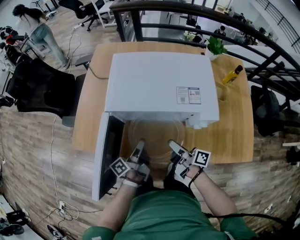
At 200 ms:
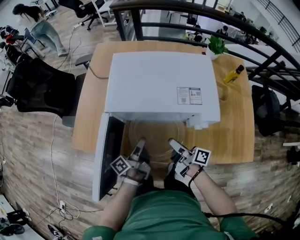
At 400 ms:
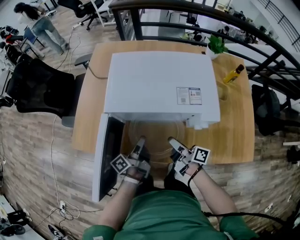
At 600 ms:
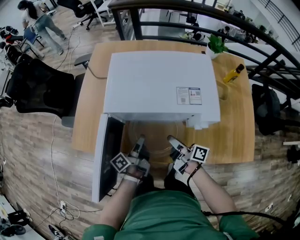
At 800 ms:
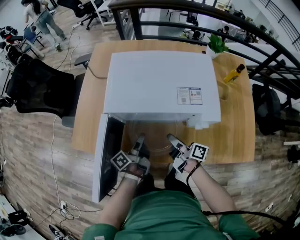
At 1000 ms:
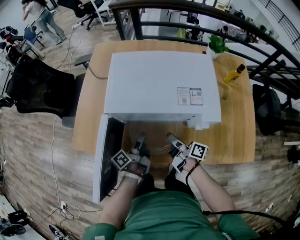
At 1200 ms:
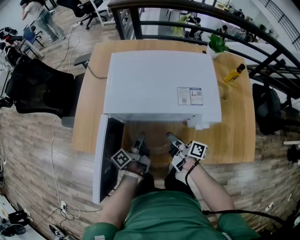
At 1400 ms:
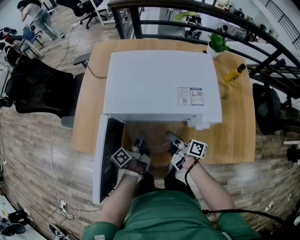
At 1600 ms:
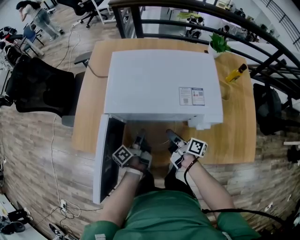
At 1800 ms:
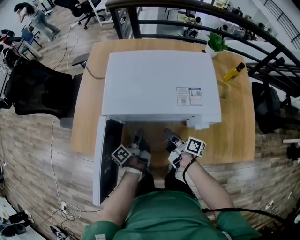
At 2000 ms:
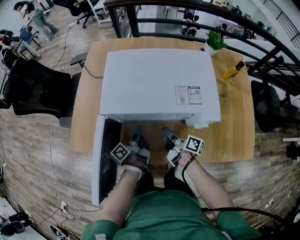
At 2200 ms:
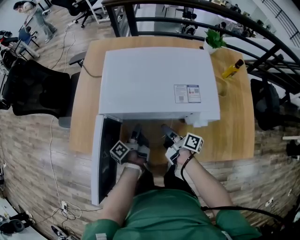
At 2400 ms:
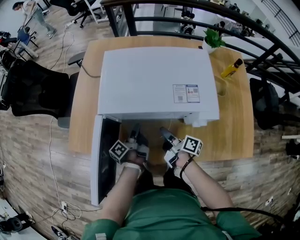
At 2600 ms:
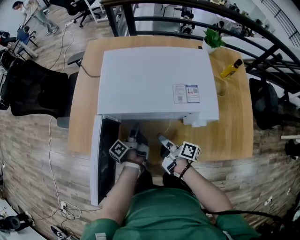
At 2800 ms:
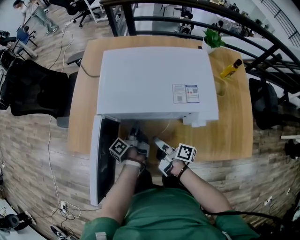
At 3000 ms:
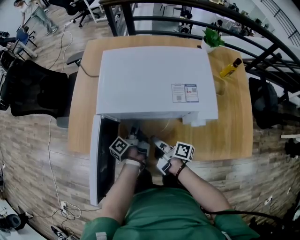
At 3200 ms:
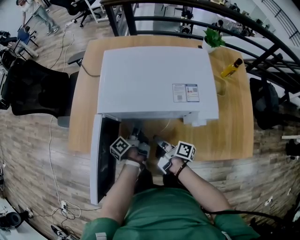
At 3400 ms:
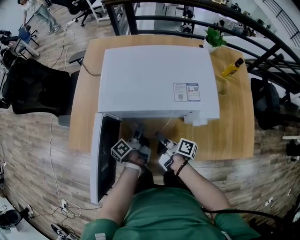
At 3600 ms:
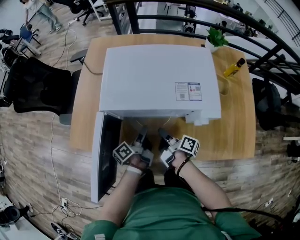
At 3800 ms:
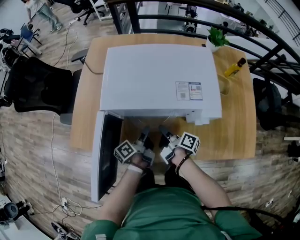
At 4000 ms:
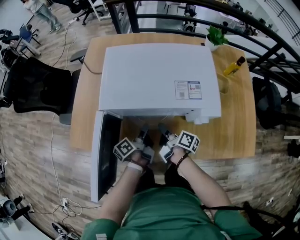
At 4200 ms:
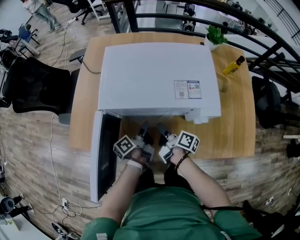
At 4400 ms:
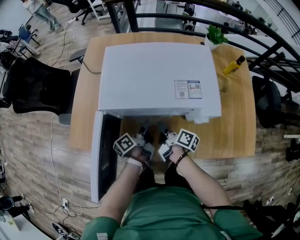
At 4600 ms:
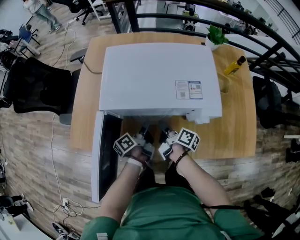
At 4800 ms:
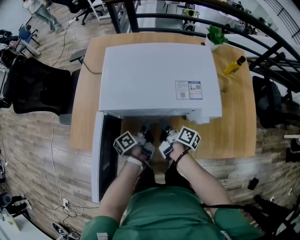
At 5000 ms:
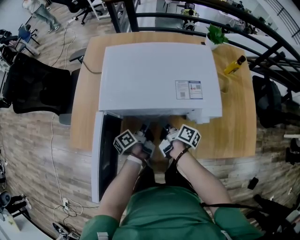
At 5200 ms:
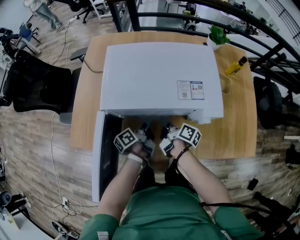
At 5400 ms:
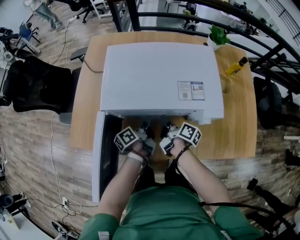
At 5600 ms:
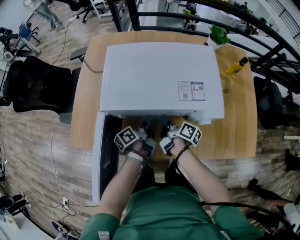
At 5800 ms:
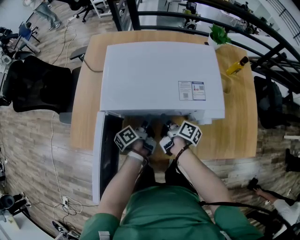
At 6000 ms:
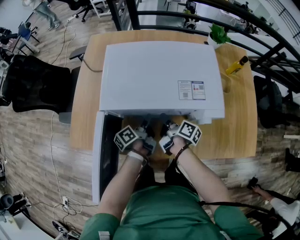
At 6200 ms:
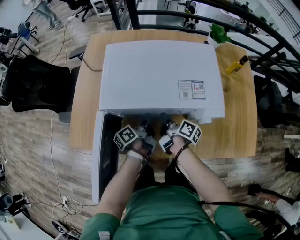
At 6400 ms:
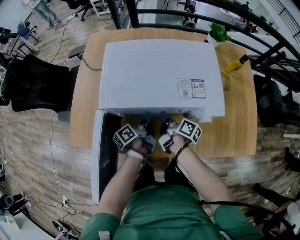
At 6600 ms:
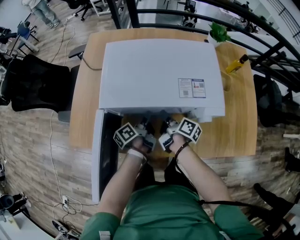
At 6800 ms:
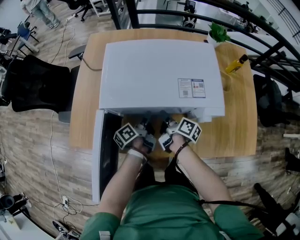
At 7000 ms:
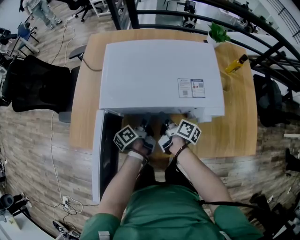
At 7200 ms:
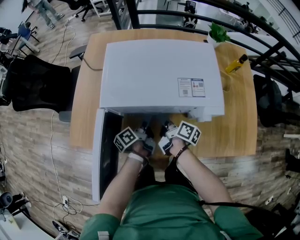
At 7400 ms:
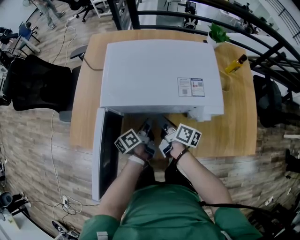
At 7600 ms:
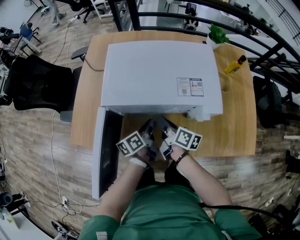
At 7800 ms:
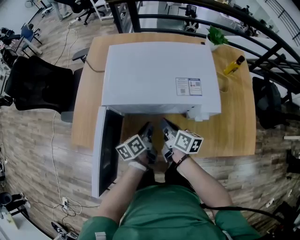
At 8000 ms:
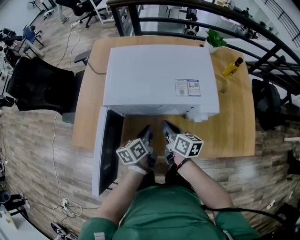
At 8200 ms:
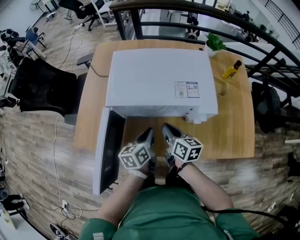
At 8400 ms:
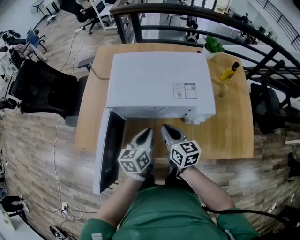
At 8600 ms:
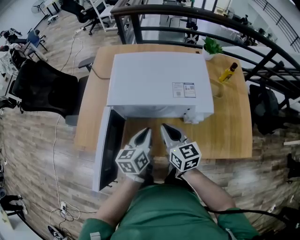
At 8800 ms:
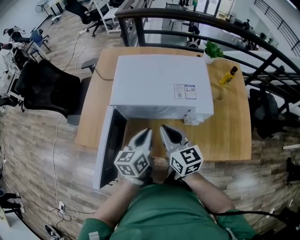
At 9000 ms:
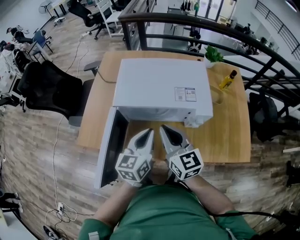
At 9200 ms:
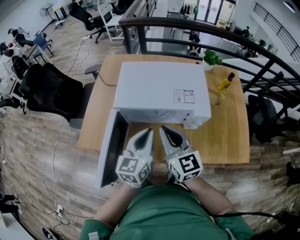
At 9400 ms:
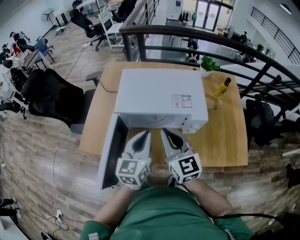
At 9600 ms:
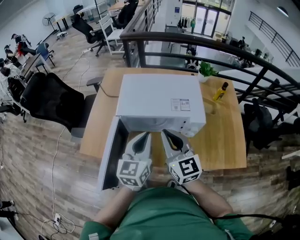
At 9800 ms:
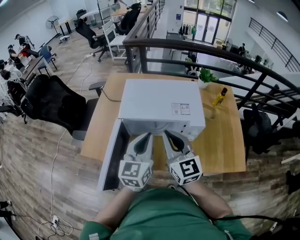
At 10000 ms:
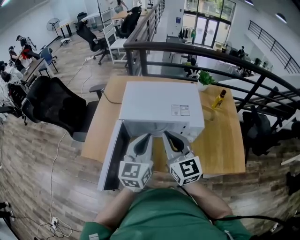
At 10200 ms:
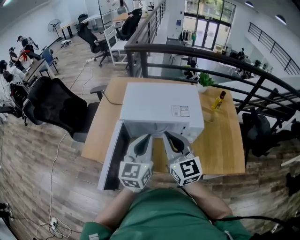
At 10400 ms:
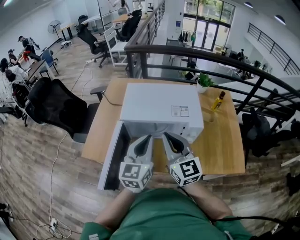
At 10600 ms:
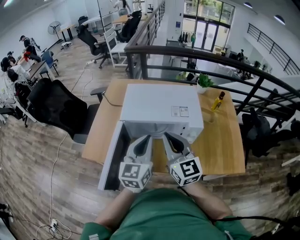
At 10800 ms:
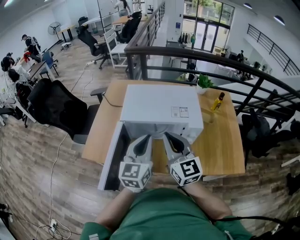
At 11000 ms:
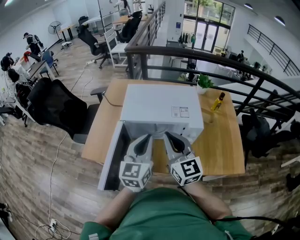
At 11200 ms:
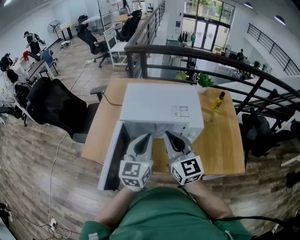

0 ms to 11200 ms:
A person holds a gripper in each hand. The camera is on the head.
0 ms to 1600 ms: The right gripper shifts approximately 5 cm downward.
1600 ms to 3200 ms: The right gripper ends up approximately 5 cm from where it was, and opens, then closes once more.
3200 ms to 4800 ms: The right gripper changes place by about 5 cm.
6400 ms to 8000 ms: The right gripper heads upward, covering some 5 cm, and swivels about 30 degrees.
8000 ms to 9600 ms: The right gripper moves upward, about 25 cm, and twists about 50 degrees counterclockwise, seen from behind.

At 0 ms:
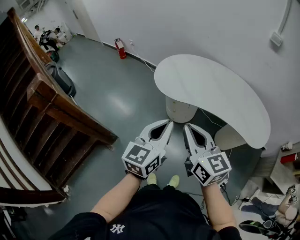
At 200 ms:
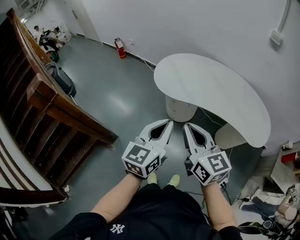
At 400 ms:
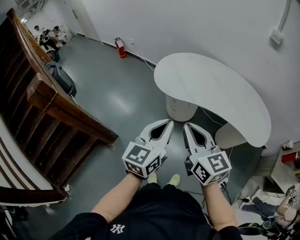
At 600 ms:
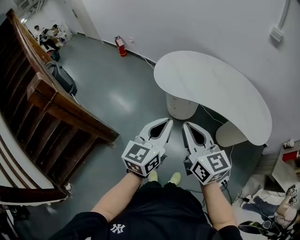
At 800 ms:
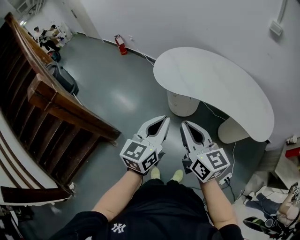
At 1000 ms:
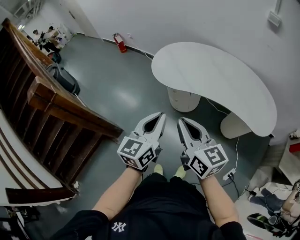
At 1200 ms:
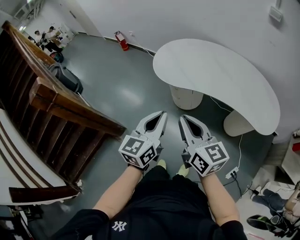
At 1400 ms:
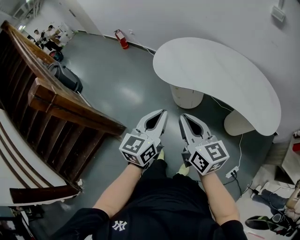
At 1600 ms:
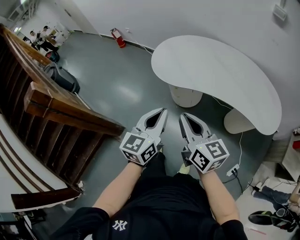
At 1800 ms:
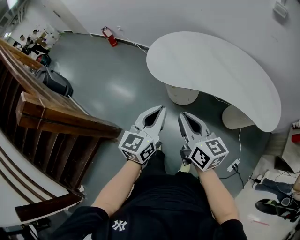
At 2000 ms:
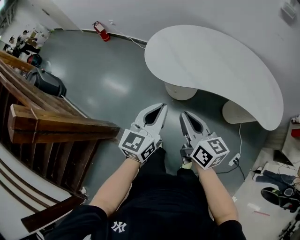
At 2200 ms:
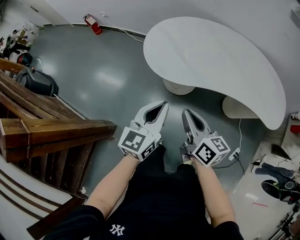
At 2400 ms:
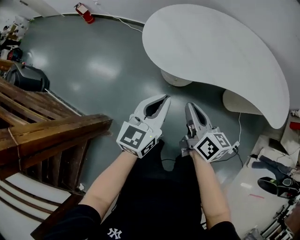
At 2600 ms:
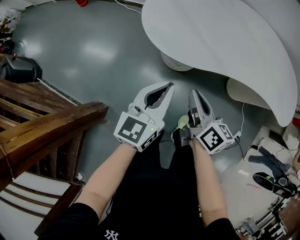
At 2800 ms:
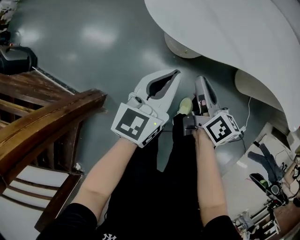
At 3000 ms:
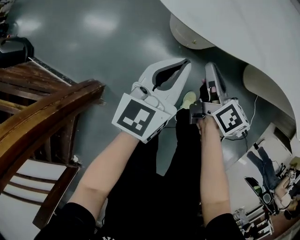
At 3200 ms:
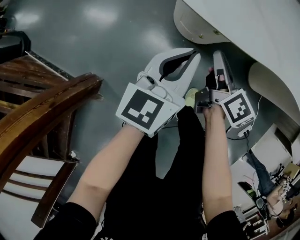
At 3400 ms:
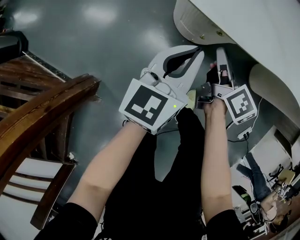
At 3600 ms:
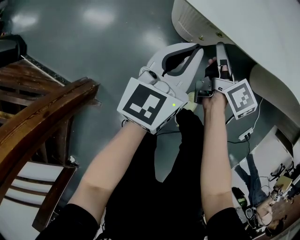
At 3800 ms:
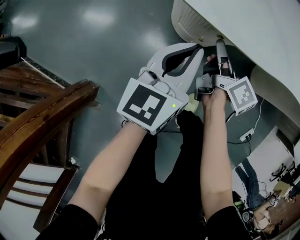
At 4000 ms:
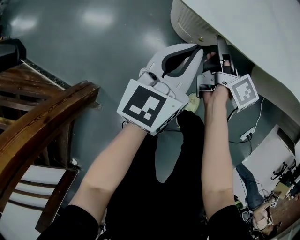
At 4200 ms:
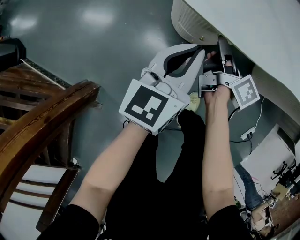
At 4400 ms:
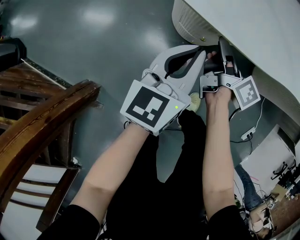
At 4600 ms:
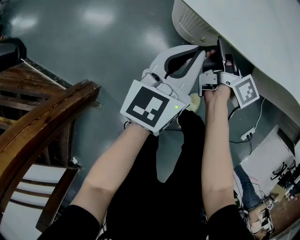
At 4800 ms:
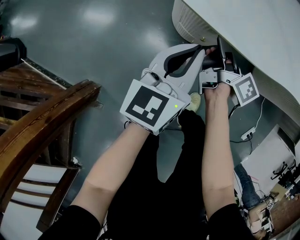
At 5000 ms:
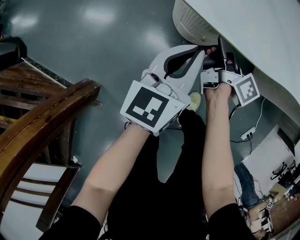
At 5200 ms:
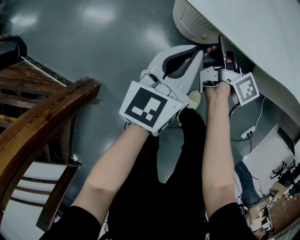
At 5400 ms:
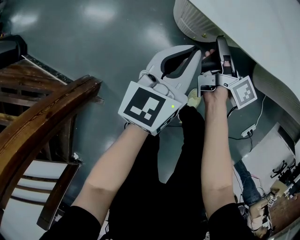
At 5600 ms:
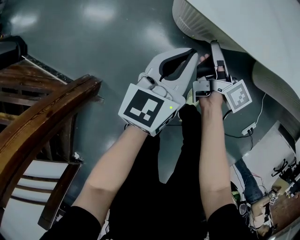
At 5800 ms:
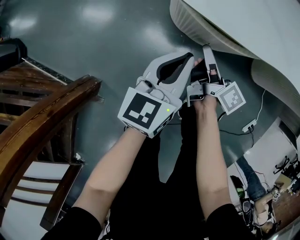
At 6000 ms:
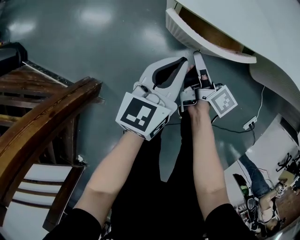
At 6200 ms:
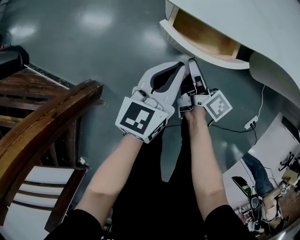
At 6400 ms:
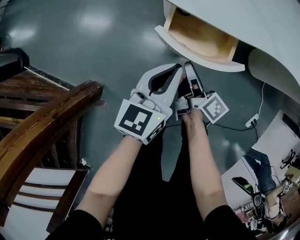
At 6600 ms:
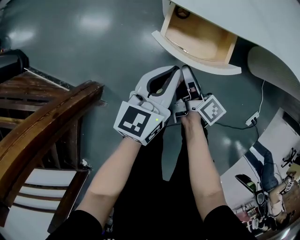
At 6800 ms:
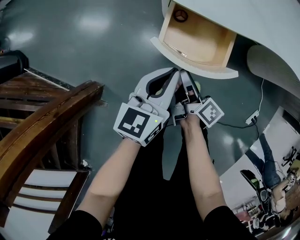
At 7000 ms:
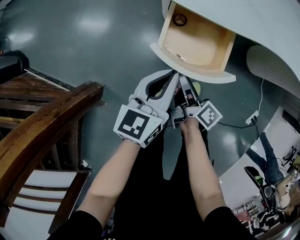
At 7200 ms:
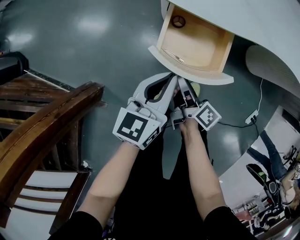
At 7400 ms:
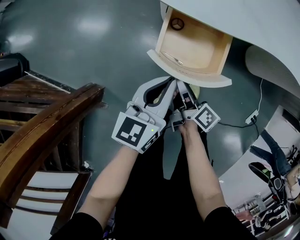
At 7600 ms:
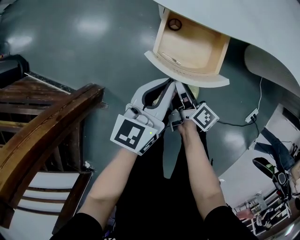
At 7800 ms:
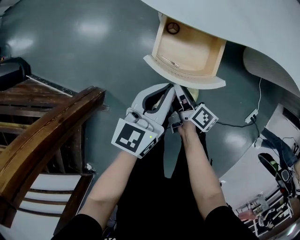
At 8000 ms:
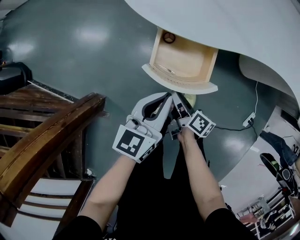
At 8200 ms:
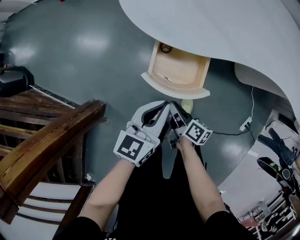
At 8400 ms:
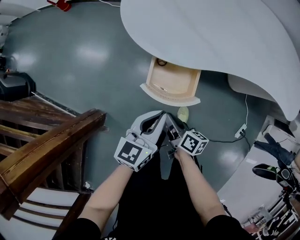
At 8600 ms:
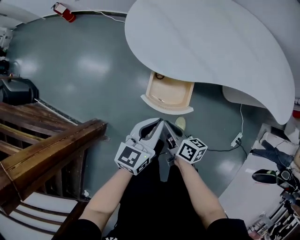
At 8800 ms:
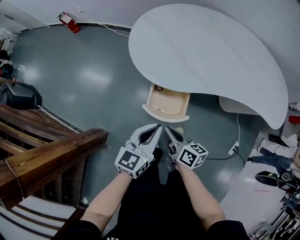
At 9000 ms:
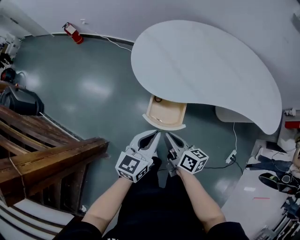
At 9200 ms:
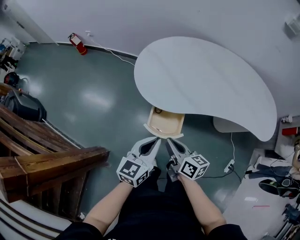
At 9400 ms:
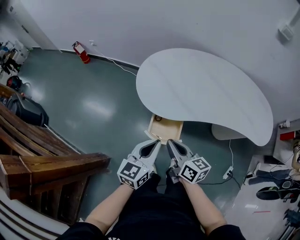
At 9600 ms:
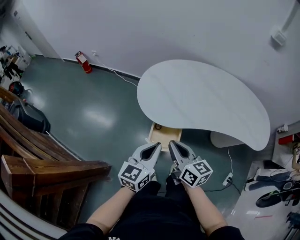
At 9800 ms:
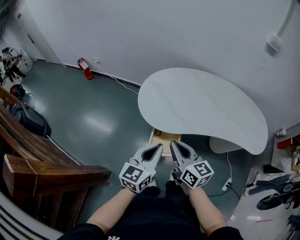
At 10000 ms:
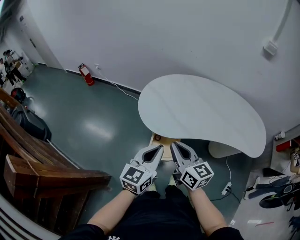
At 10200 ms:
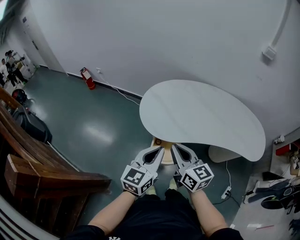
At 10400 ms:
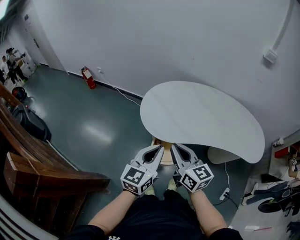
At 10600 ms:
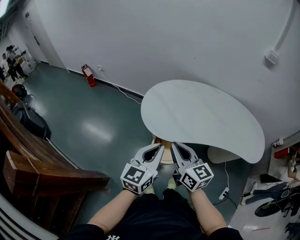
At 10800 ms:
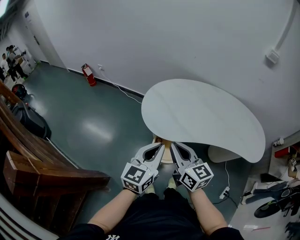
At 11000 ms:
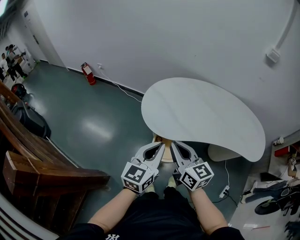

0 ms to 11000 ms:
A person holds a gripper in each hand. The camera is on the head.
0 ms to 1600 ms: Both grippers travel together downward, approximately 5 cm.
1600 ms to 3200 ms: The two grippers go about 50 cm downward and forward. The right gripper rotates roughly 40 degrees.
3200 ms to 4800 ms: The right gripper travels forward and downward by some 10 cm, and rotates roughly 30 degrees. Meanwhile the left gripper goes about 5 cm downward.
4800 ms to 6200 ms: The left gripper travels backward by about 10 cm, while the right gripper moves backward, some 15 cm.
6200 ms to 7800 ms: The two grippers go about 5 cm backward.
7800 ms to 9400 ms: The grippers both shift upward by roughly 35 cm. The right gripper swivels approximately 40 degrees, and closes its fingers.
9400 ms to 11000 ms: The grippers both shift upward by about 15 cm. The right gripper rotates about 20 degrees.

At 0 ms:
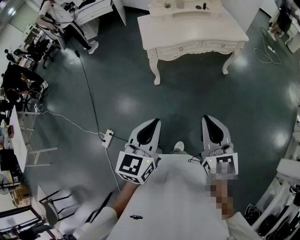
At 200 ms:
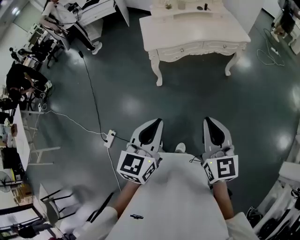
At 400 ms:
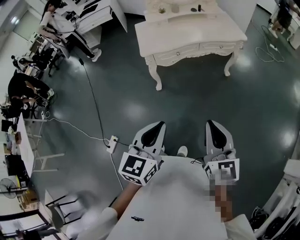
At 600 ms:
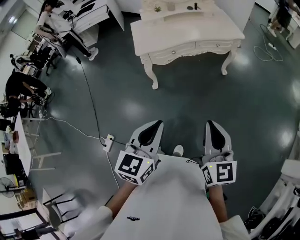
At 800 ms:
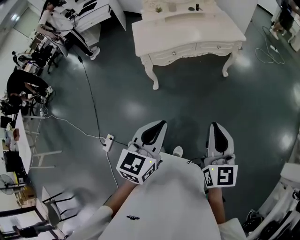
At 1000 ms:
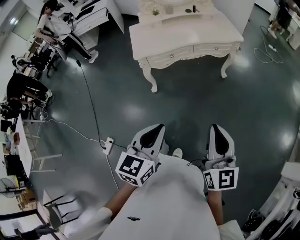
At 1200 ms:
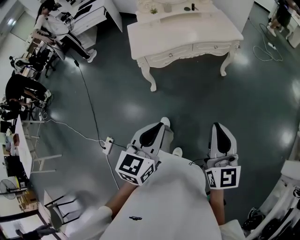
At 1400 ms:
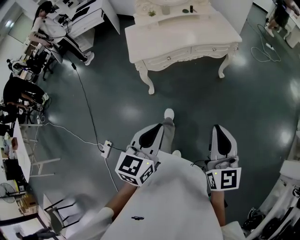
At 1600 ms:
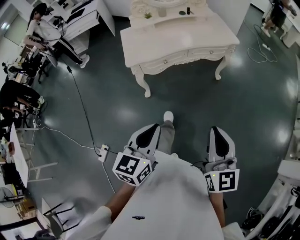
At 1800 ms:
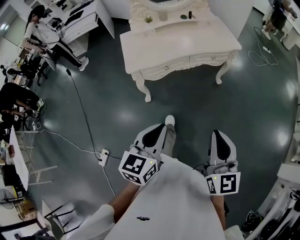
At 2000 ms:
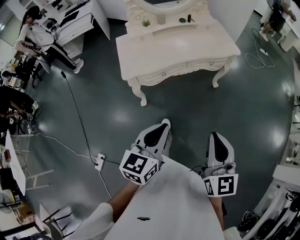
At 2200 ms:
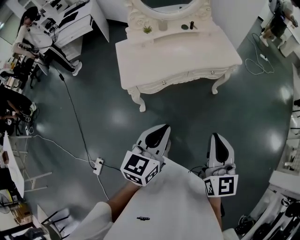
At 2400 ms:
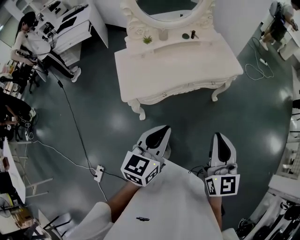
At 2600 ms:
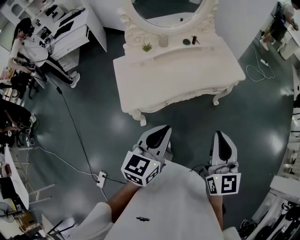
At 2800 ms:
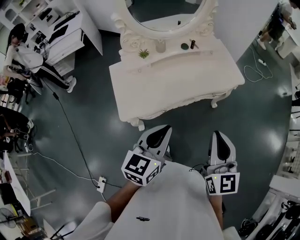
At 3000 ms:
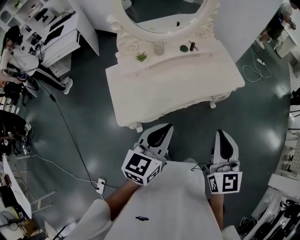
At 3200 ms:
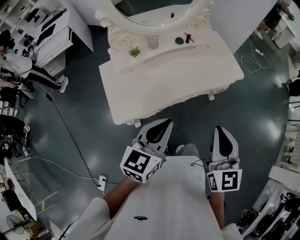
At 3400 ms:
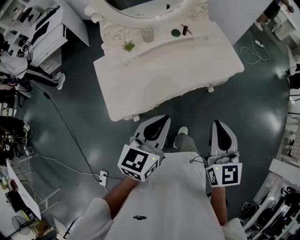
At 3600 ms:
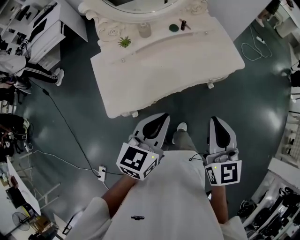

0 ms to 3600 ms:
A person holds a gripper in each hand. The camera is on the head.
0 ms to 1800 ms: Both grippers move forward and to the right, some 20 cm.
1800 ms to 3600 ms: The two grippers go approximately 40 cm forward.
